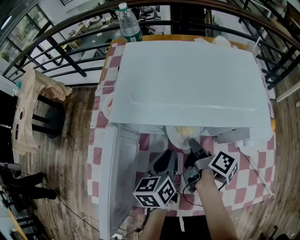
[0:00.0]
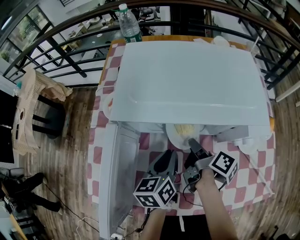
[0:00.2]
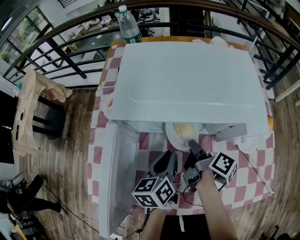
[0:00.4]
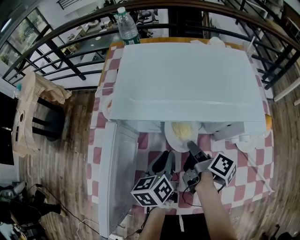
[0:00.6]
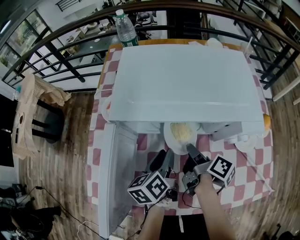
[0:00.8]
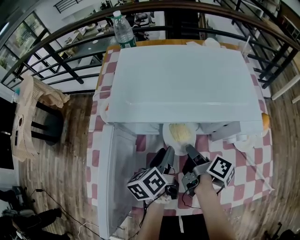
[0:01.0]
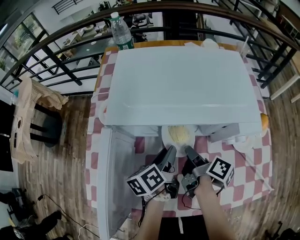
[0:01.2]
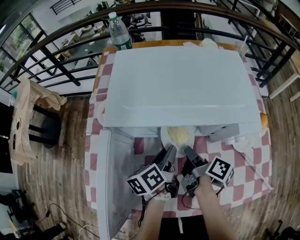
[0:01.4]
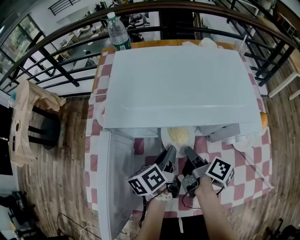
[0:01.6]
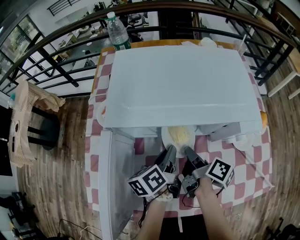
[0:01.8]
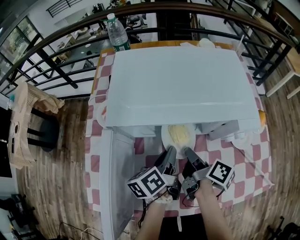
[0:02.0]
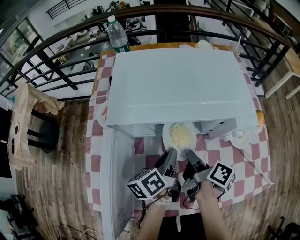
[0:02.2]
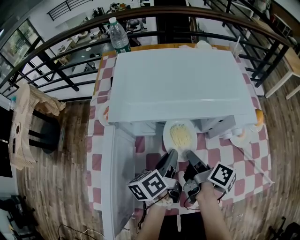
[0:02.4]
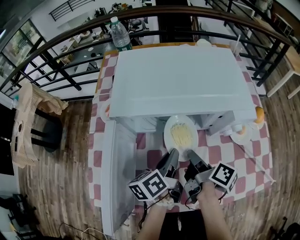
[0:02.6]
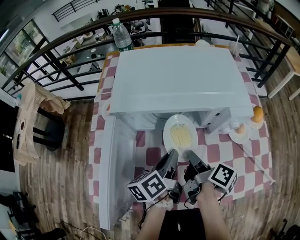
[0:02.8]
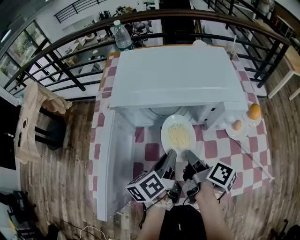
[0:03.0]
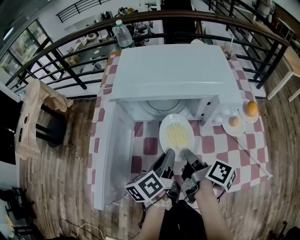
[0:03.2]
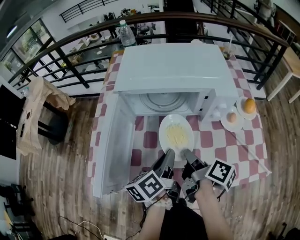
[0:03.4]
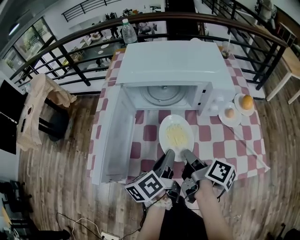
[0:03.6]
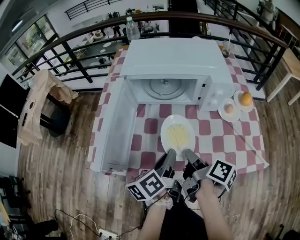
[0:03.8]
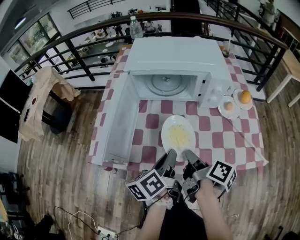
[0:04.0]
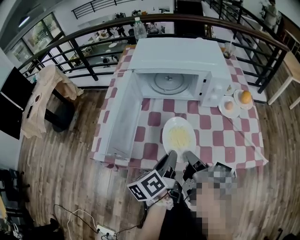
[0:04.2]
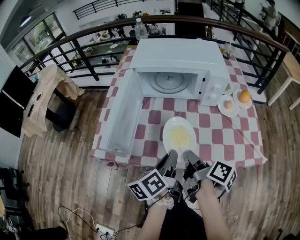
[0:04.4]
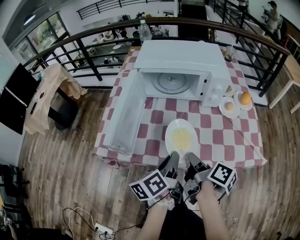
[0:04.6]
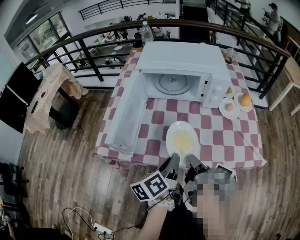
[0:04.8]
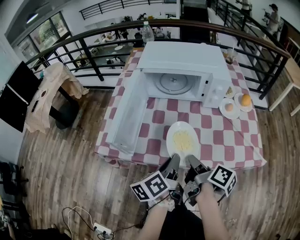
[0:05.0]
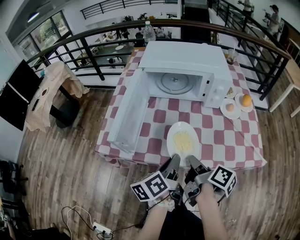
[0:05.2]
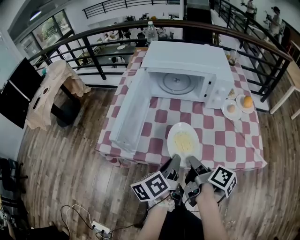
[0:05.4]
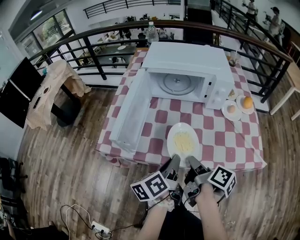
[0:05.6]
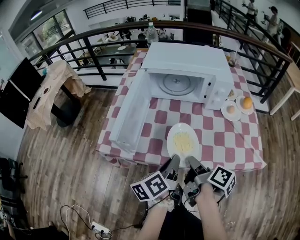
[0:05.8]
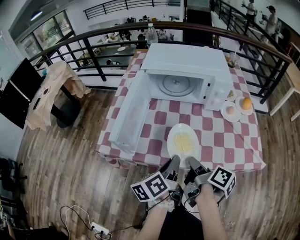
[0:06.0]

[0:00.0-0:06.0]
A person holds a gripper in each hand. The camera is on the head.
0:00.0 to 0:01.6: The left gripper rotates roughly 20 degrees, and opens and closes again.
0:01.6 to 0:03.0: The left gripper travels backward and upward by some 10 cm. The right gripper is displaced backward by roughly 10 cm.
0:03.0 to 0:04.4: Both grippers move backward, approximately 20 cm.
0:04.4 to 0:06.0: The grippers move only a little.

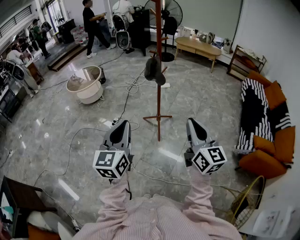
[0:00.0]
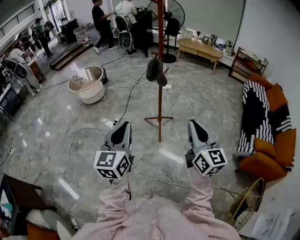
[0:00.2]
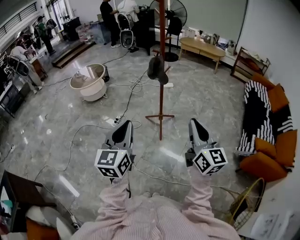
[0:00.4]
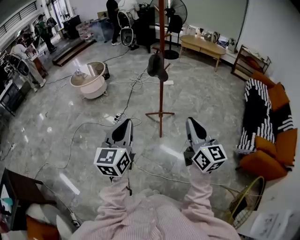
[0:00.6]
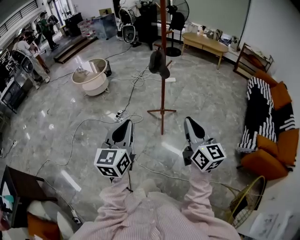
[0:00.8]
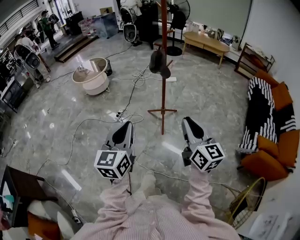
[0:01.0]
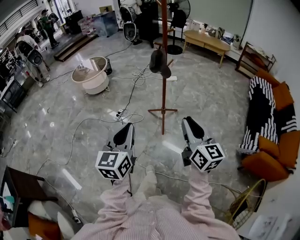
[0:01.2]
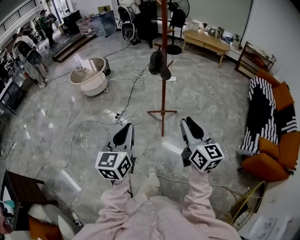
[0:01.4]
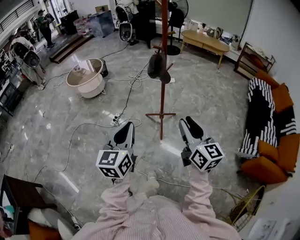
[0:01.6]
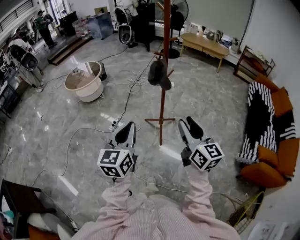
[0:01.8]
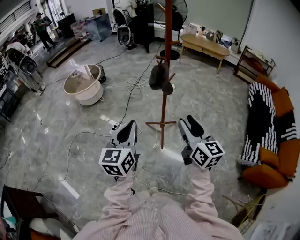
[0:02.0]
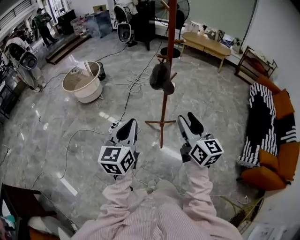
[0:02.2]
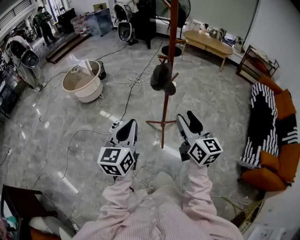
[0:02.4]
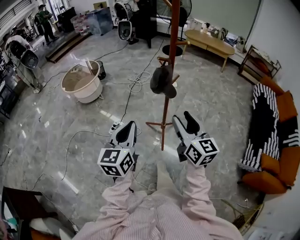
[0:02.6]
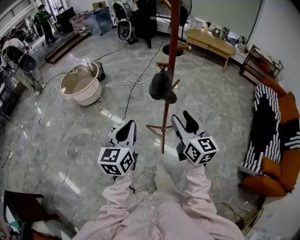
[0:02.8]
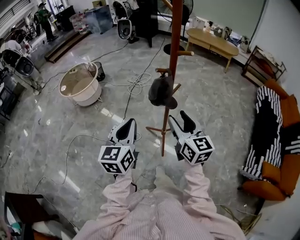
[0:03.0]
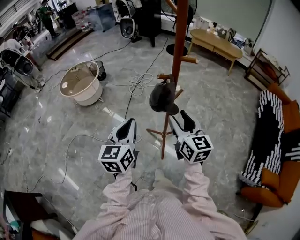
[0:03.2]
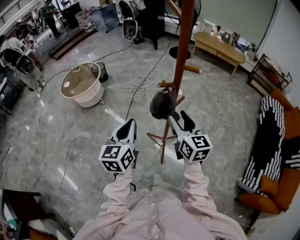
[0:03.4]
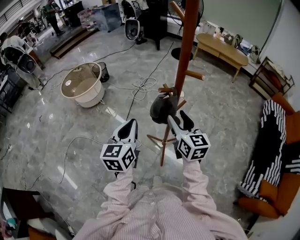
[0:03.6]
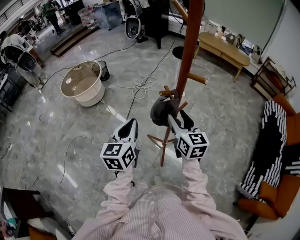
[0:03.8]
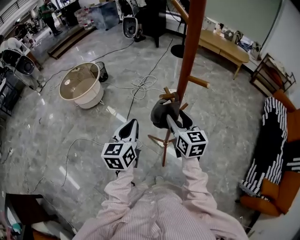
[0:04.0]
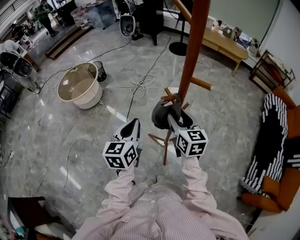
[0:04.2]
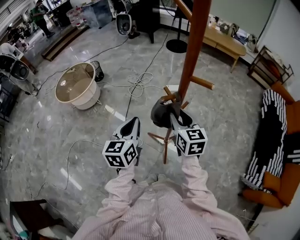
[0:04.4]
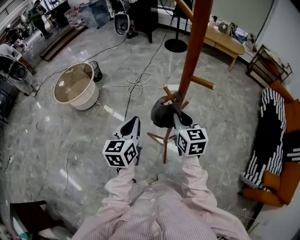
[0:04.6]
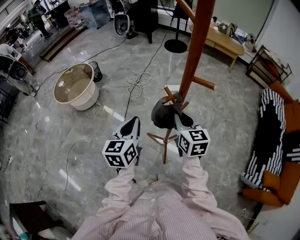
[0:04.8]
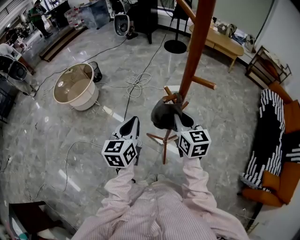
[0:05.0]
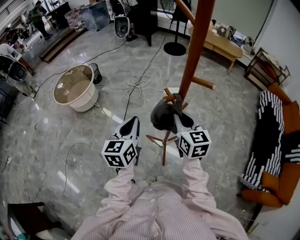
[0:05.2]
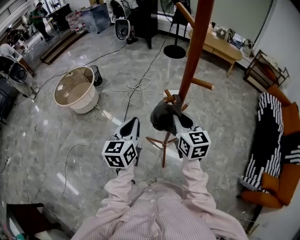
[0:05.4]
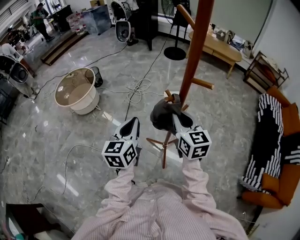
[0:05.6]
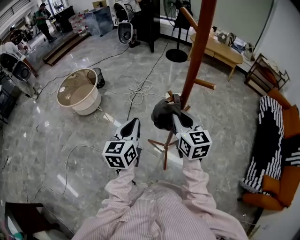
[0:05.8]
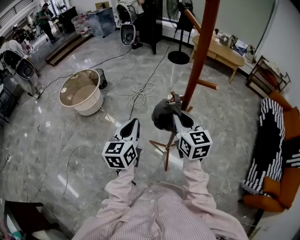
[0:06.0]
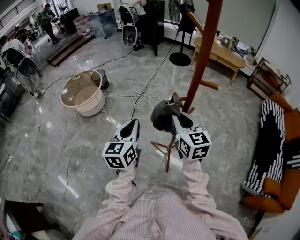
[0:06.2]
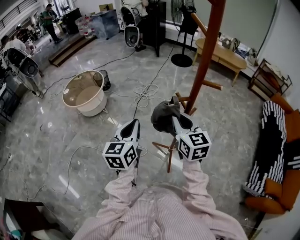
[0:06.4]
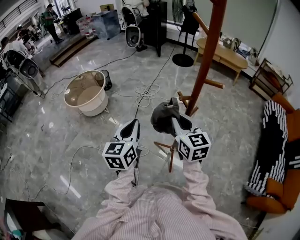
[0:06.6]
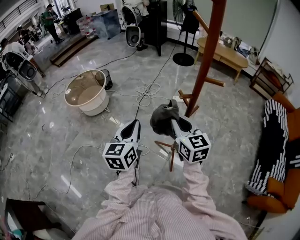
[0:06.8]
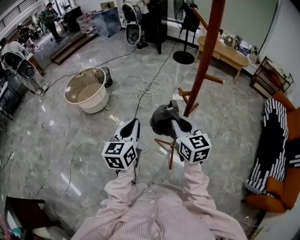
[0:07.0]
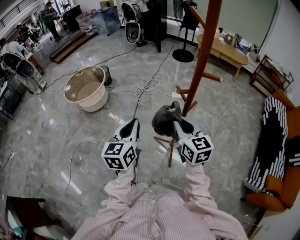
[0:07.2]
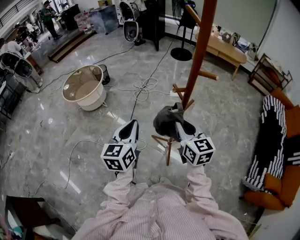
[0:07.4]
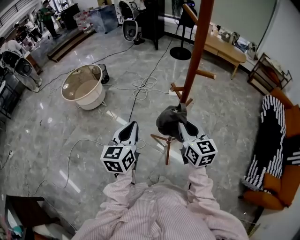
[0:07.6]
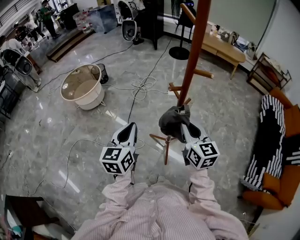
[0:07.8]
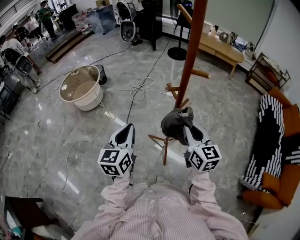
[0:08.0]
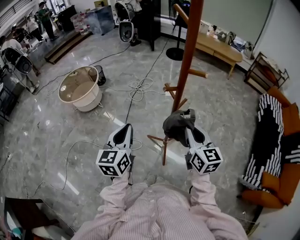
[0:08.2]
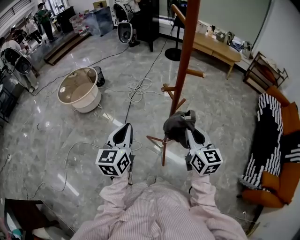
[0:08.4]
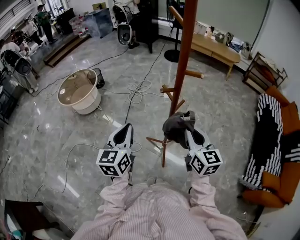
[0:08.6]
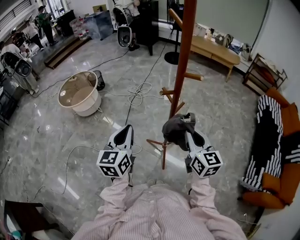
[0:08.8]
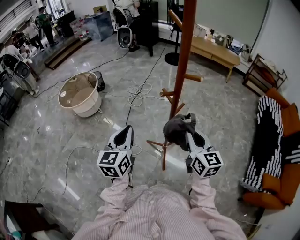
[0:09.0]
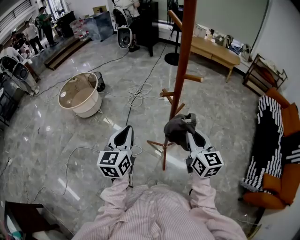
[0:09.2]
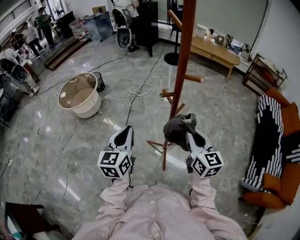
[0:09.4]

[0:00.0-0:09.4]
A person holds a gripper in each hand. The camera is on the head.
0:00.0 to 0:01.6: Both grippers travel together forward, about 10 cm. The right gripper opens.
0:01.6 to 0:03.2: The two grippers go some 35 cm forward. The right gripper opens up.
0:03.2 to 0:04.8: Both grippers move forward, about 15 cm. The right gripper closes up.
0:04.8 to 0:06.2: The right gripper goes roughly 10 cm upward and to the left. The left gripper ends up about 5 cm from where it was.
0:06.2 to 0:07.8: The right gripper heads backward and to the right, covering some 10 cm, while the left gripper travels backward by roughly 5 cm.
0:07.8 to 0:09.4: The grippers make only small movements.

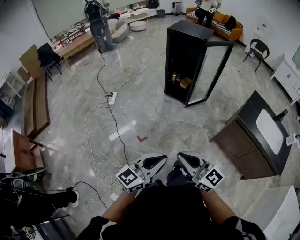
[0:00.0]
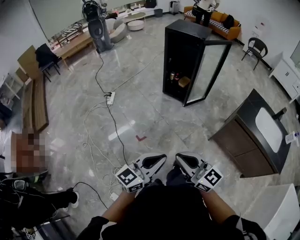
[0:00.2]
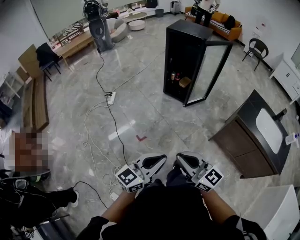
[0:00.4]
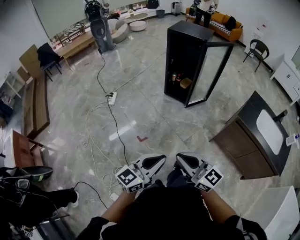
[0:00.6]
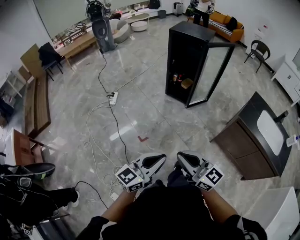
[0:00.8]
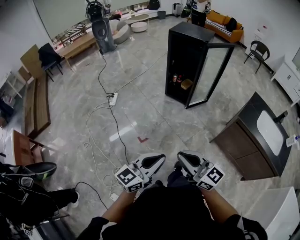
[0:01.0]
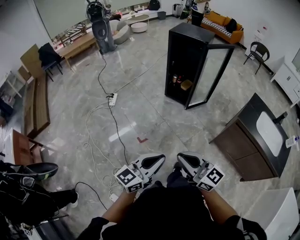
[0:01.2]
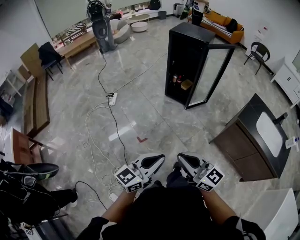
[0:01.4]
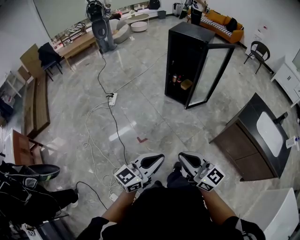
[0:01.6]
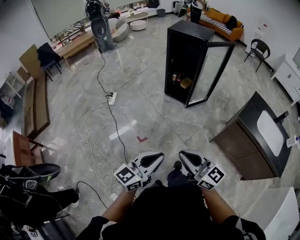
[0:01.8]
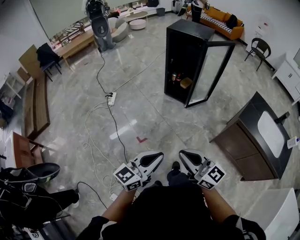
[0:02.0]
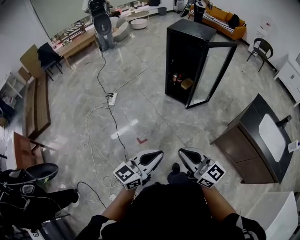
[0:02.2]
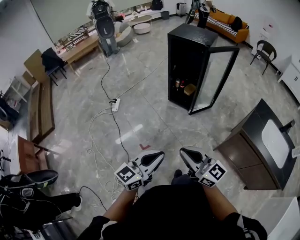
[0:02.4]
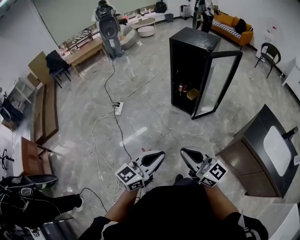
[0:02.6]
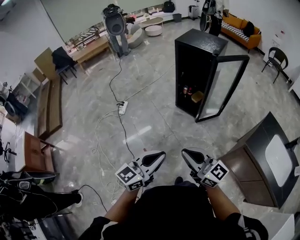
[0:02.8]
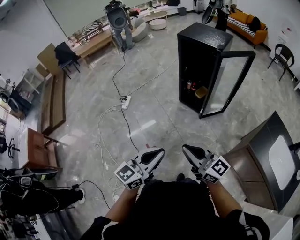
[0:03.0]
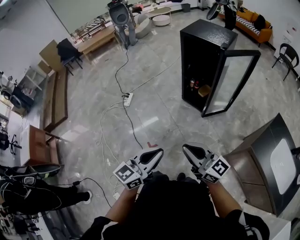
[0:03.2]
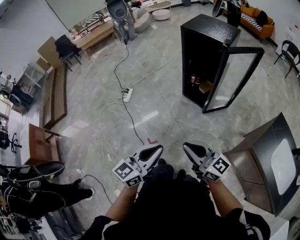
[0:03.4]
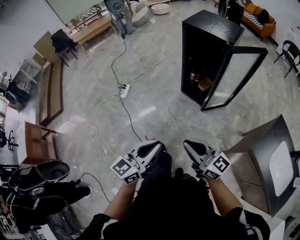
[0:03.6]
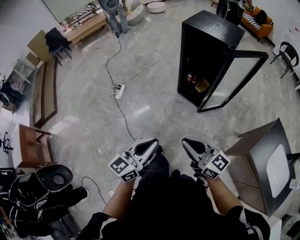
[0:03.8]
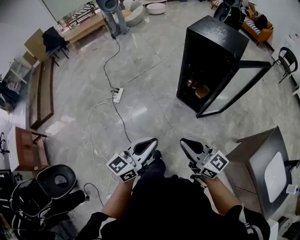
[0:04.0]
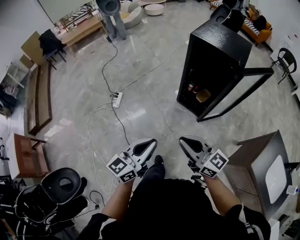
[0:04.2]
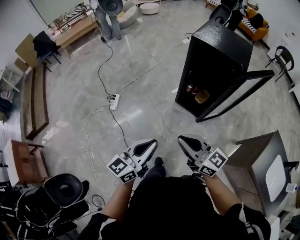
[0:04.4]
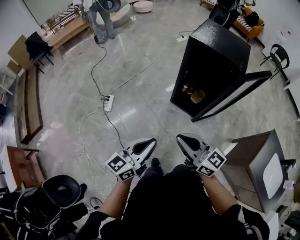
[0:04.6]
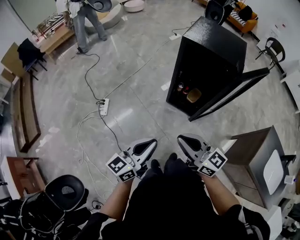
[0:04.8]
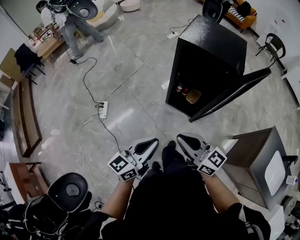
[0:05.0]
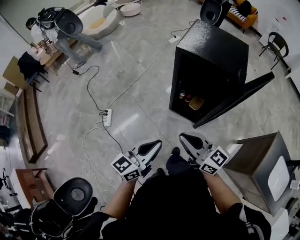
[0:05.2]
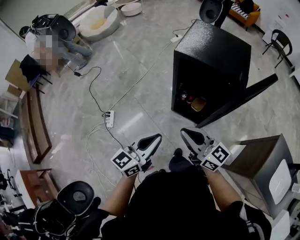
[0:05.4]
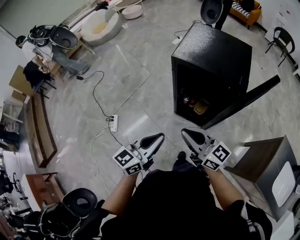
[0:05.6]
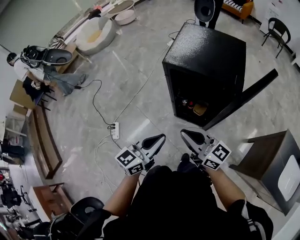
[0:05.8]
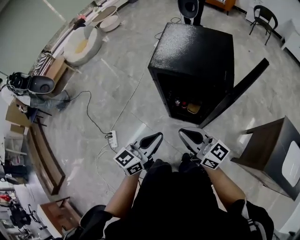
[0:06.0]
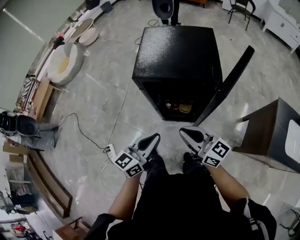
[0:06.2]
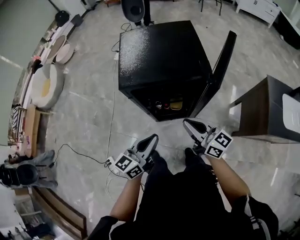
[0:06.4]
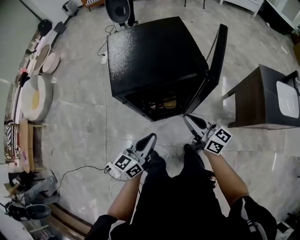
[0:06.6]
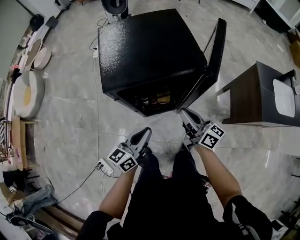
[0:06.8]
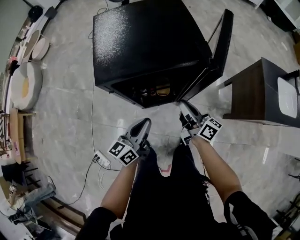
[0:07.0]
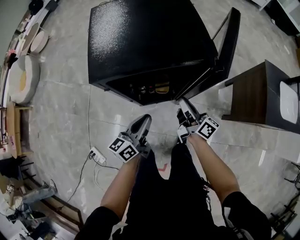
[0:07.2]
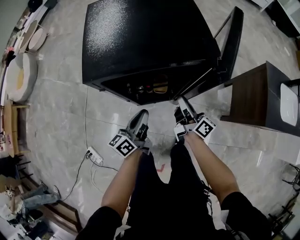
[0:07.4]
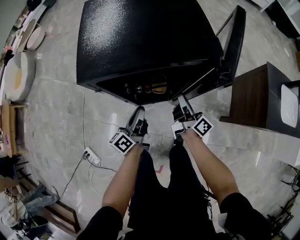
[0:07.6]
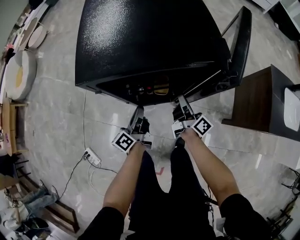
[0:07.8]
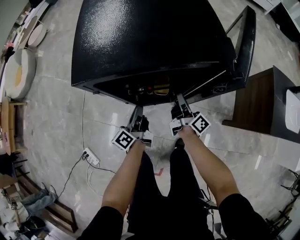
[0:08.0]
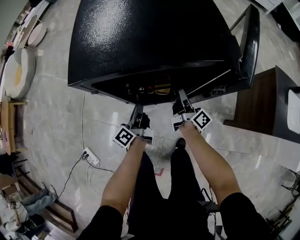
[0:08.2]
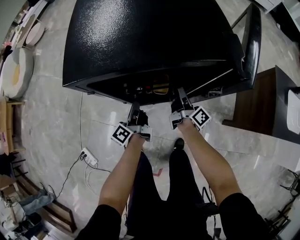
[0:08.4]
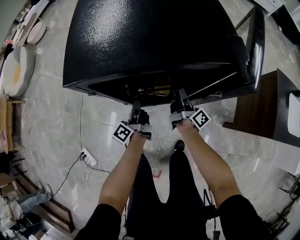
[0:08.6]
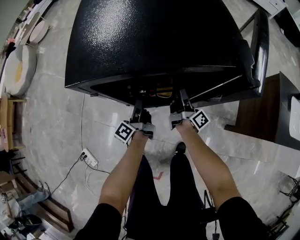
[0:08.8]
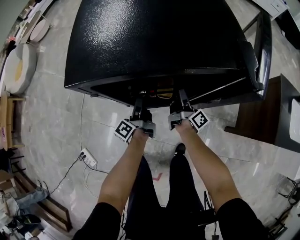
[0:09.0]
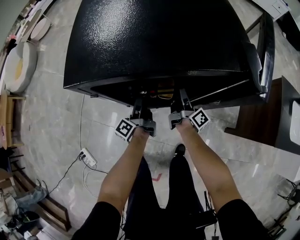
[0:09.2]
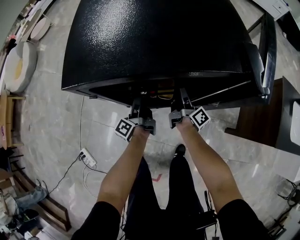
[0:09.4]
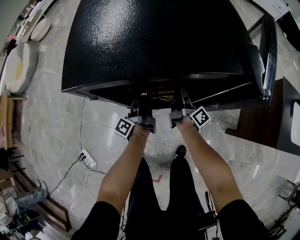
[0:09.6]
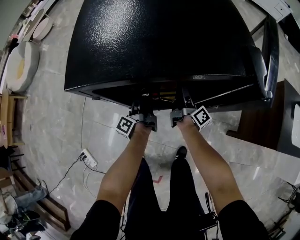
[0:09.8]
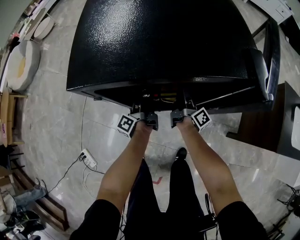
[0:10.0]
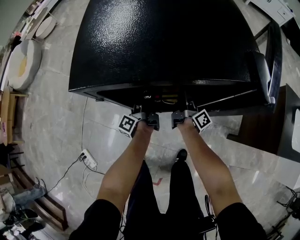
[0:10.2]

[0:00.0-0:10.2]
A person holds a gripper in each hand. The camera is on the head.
0:00.0 to 0:01.4: The grippers make only small movements.
0:01.4 to 0:03.0: Both grippers move forward, roughly 20 cm.
0:03.0 to 0:04.4: Both grippers travel together forward, approximately 25 cm.
0:04.4 to 0:05.8: The left gripper heads forward and to the right, covering roughly 30 cm, while the right gripper shifts about 25 cm forward.
0:05.8 to 0:07.2: The right gripper ends up roughly 25 cm from where it was, and swivels about 60 degrees; the left gripper shifts by roughly 25 cm, and turns by roughly 30 degrees.
0:07.2 to 0:08.8: Both grippers move downward and forward, some 20 cm. The right gripper rotates approximately 30 degrees, and opens. The left gripper swivels some 50 degrees, and opens.
0:08.8 to 0:10.2: The left gripper heads forward, covering approximately 5 cm.
